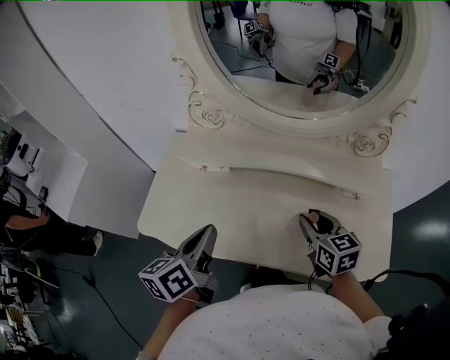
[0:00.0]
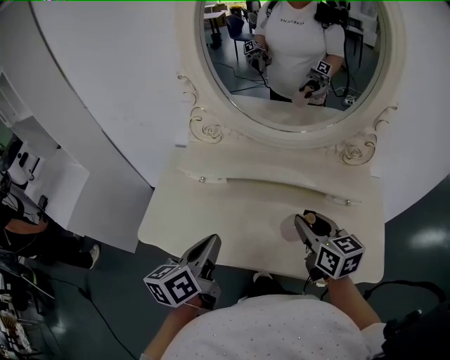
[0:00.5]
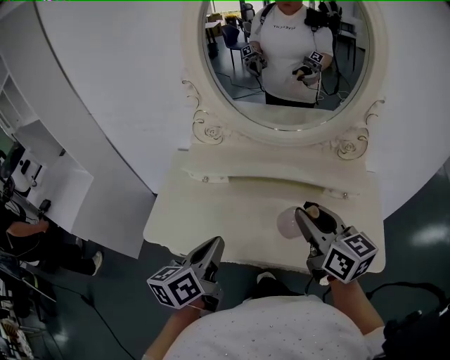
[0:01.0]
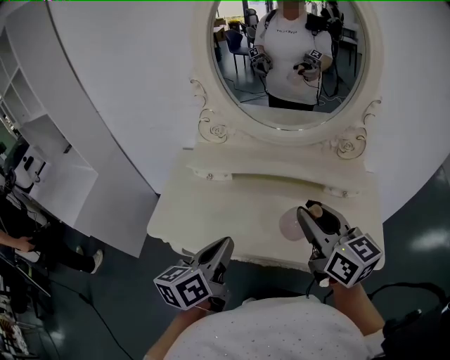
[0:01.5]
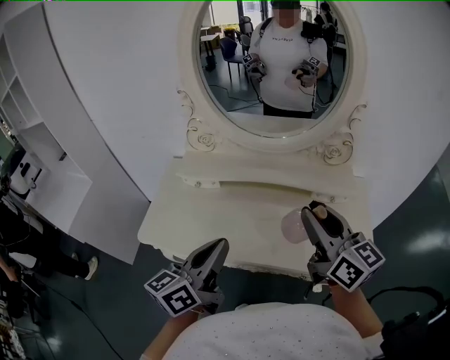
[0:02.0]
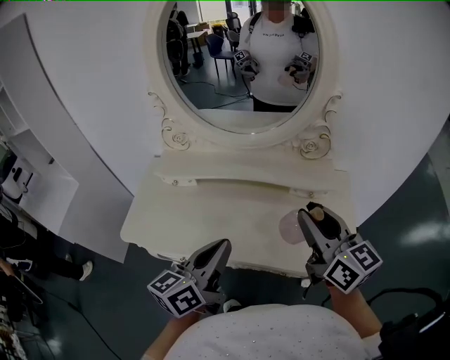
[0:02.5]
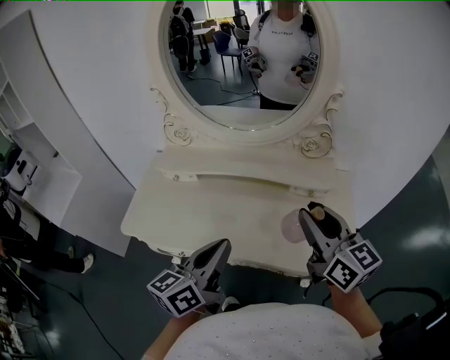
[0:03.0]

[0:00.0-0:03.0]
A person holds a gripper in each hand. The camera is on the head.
0:00.0 to 0:01.5: The right gripper moves upward and backward, some 20 cm, and changes its angle by approximately 20 degrees. Meanwhile the left gripper goes roughly 10 cm backward.
0:01.5 to 0:03.0: The grippers both shift to the right by about 15 cm.
